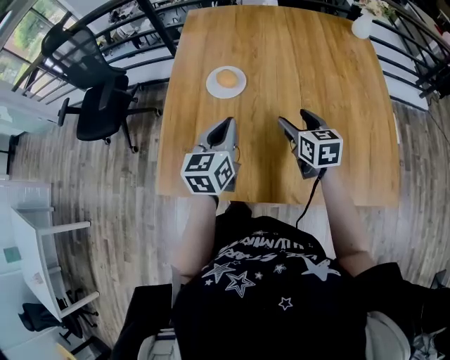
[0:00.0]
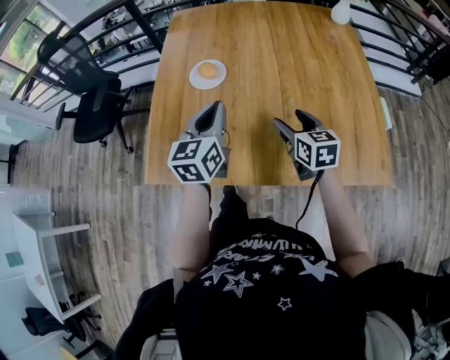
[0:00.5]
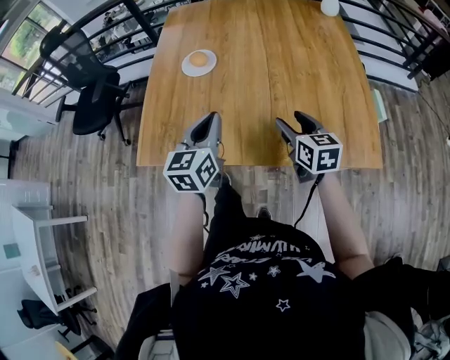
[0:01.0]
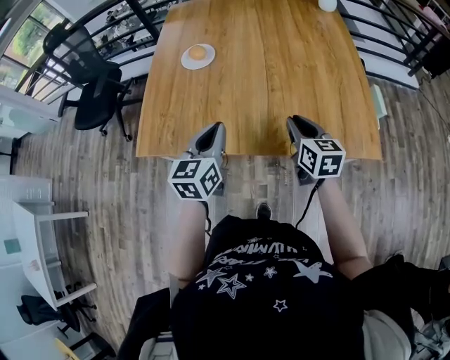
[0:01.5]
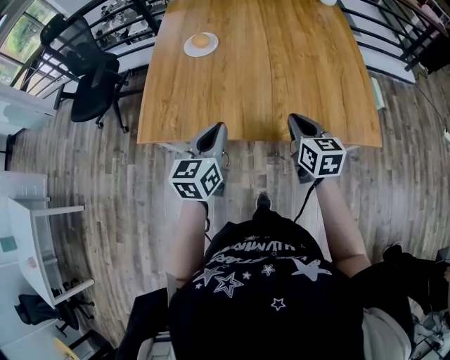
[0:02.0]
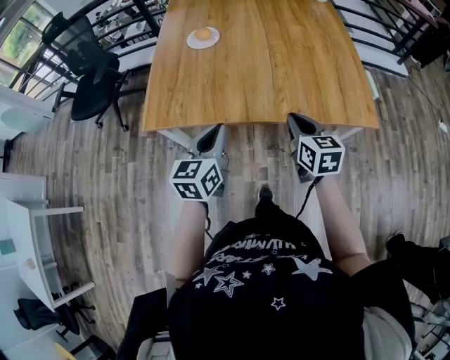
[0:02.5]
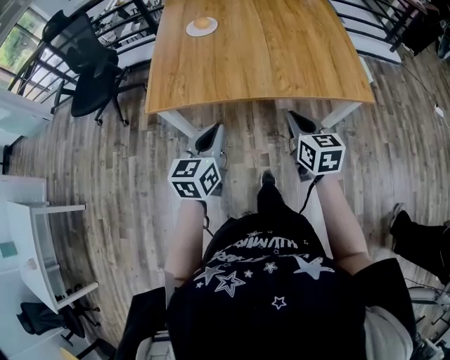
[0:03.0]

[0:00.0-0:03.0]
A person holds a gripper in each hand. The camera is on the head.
0:00.0 to 0:01.5: The two grippers go roughly 20 cm backward and to the right. The right gripper closes up.
0:01.5 to 0:03.0: Both grippers move backward, some 20 cm.

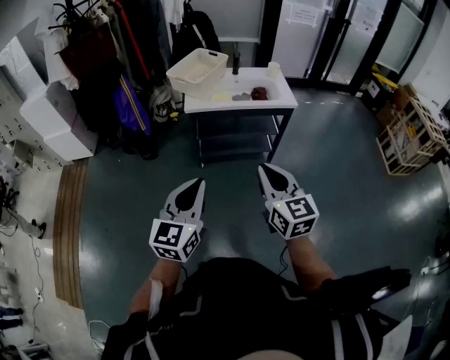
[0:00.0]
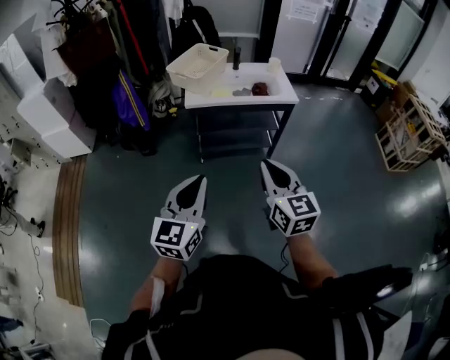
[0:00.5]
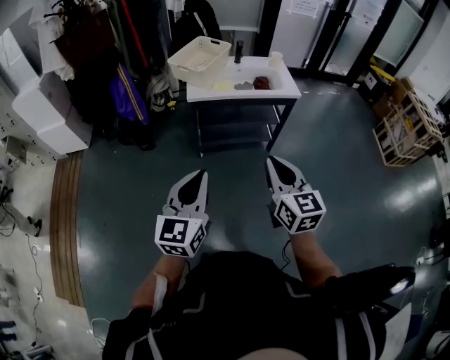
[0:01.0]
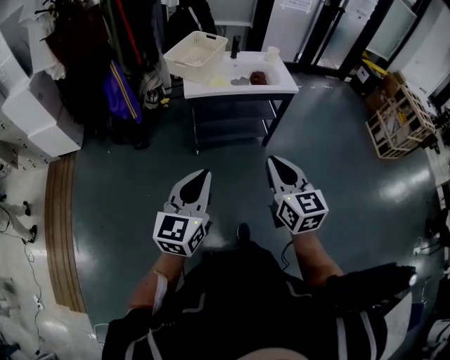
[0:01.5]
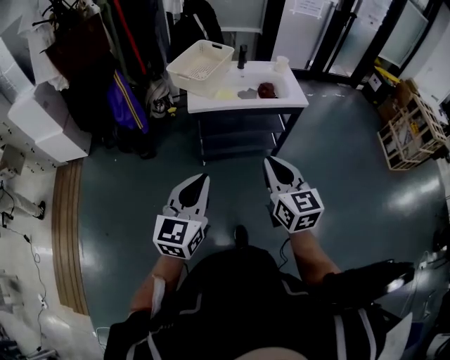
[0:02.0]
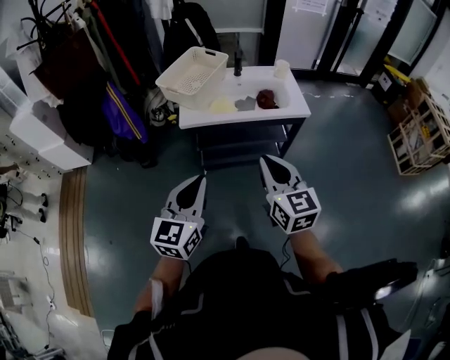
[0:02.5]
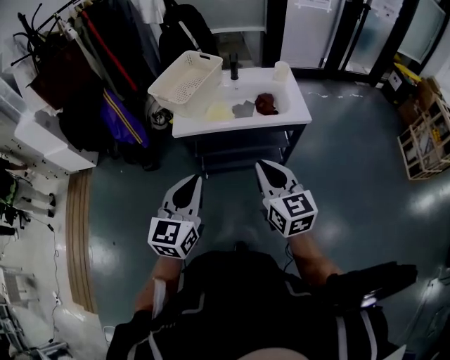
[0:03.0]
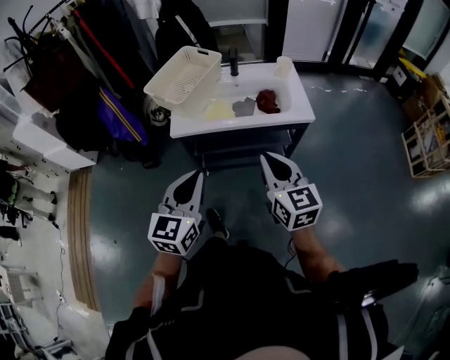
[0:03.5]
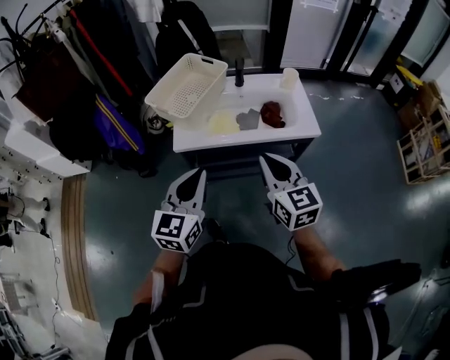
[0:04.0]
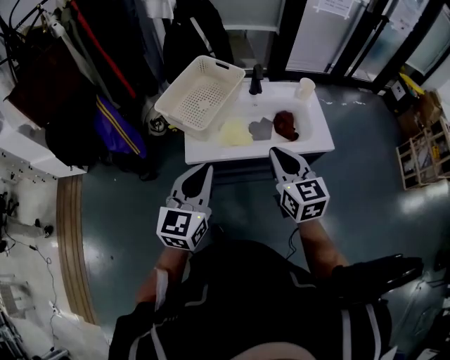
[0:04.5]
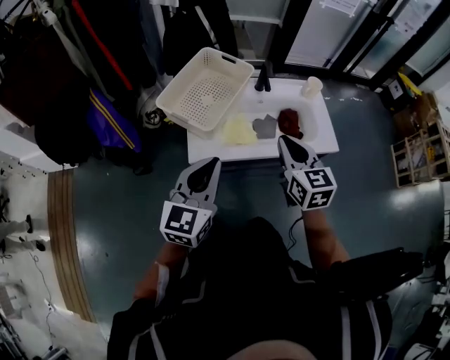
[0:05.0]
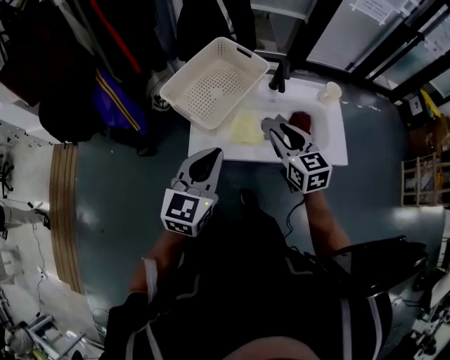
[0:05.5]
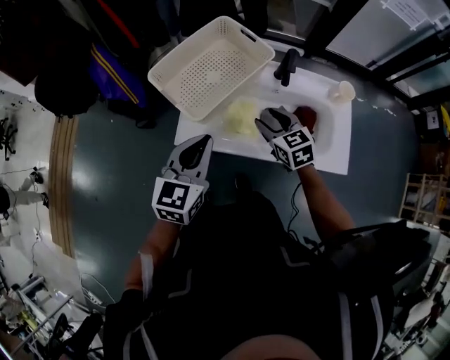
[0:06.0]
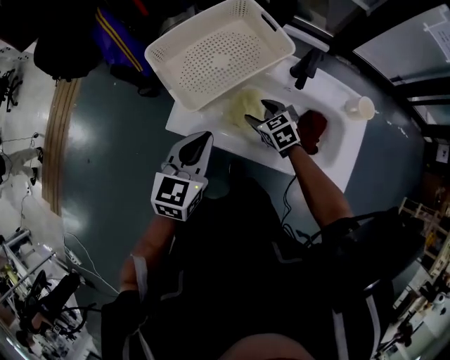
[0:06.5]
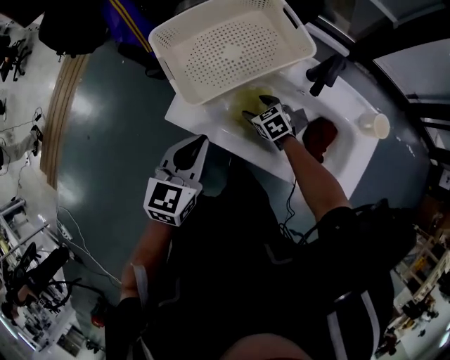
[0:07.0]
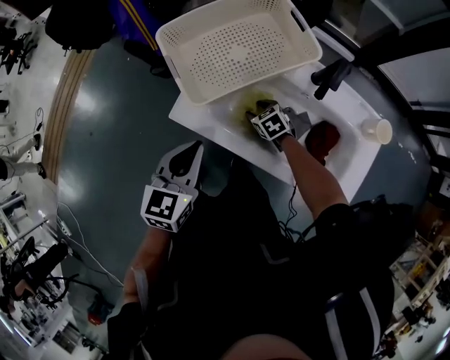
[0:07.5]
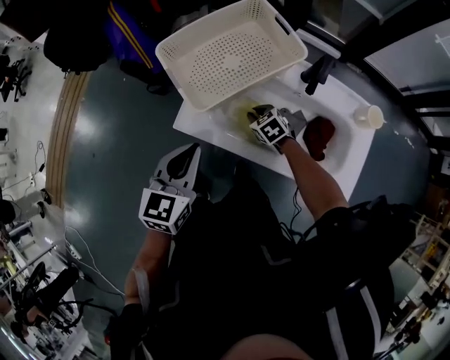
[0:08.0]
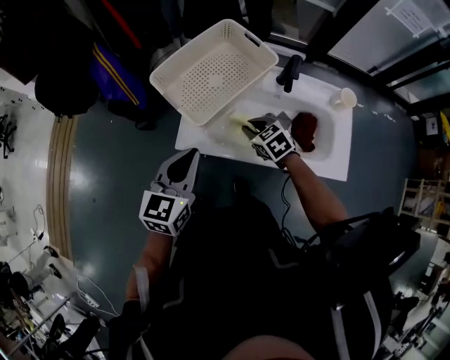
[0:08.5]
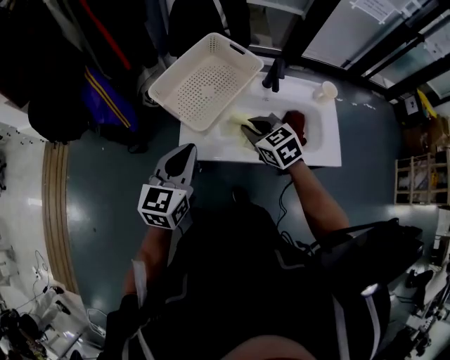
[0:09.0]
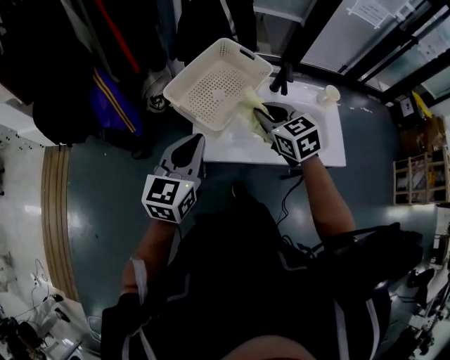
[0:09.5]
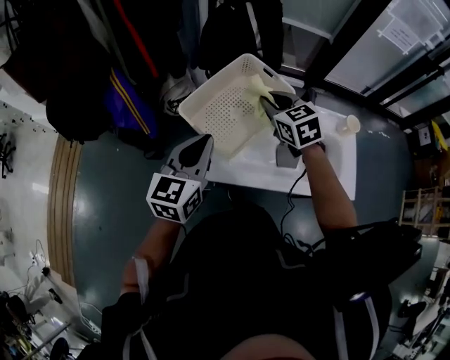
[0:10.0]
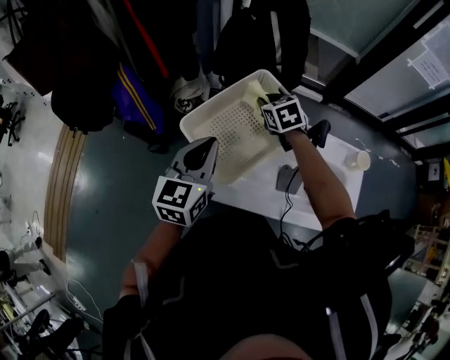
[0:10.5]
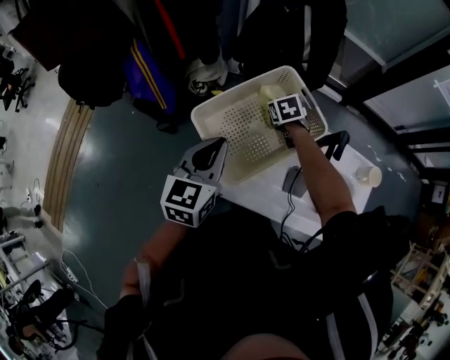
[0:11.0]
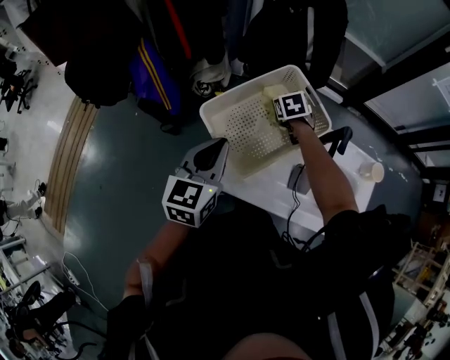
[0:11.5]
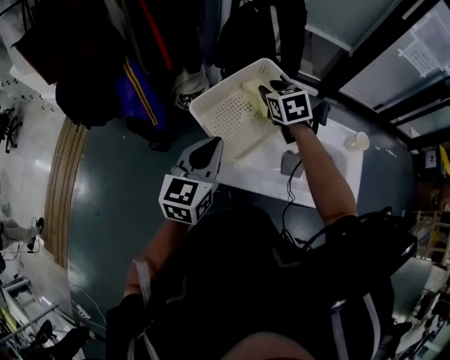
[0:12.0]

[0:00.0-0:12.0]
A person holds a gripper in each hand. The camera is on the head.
0:00.0 to 0:02.0: The right gripper heads forward, covering approximately 10 cm; the left gripper travels forward and to the left by about 10 cm.
0:02.0 to 0:04.0: The grippers both shift forward by roughly 30 cm.
0:04.0 to 0:06.0: The left gripper goes approximately 25 cm forward, while the right gripper moves forward and downward, some 35 cm, rotates approximately 30 degrees, and opens.
0:06.0 to 0:08.0: The left gripper travels downward by some 5 cm, while the right gripper shifts some 20 cm downward, changes its angle by roughly 30 degrees, and closes up.
0:08.0 to 0:10.0: The left gripper shifts by roughly 15 cm. Meanwhile the right gripper heads upward, covering about 30 cm, and changes its angle by approximately 30 degrees.
0:10.0 to 0:12.0: The right gripper moves forward, some 10 cm, and travels downward and back again, about 20 cm each way, while the left gripper goes forward and returns, approximately 10 cm each way.

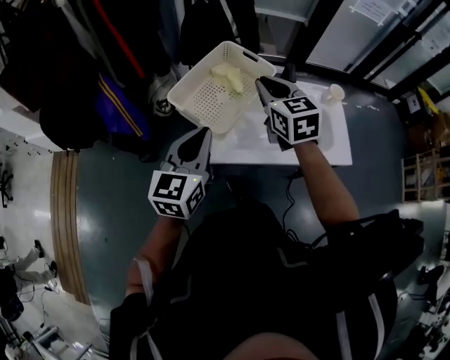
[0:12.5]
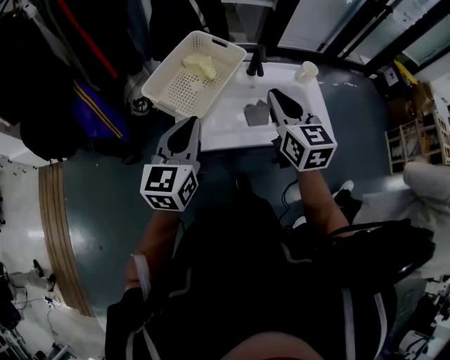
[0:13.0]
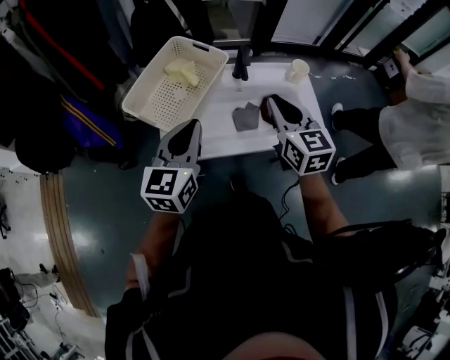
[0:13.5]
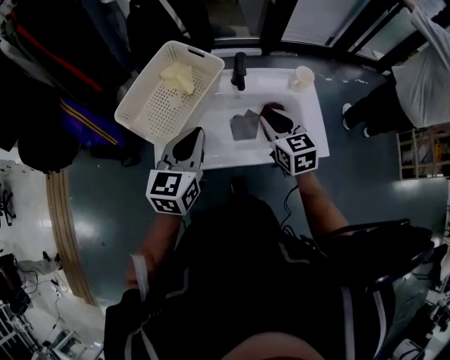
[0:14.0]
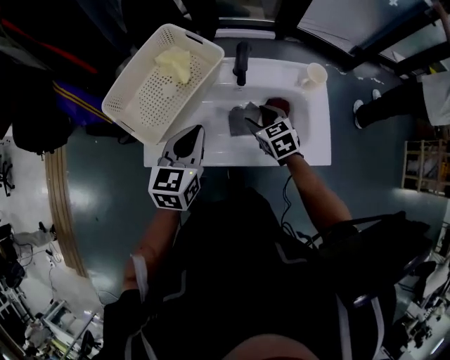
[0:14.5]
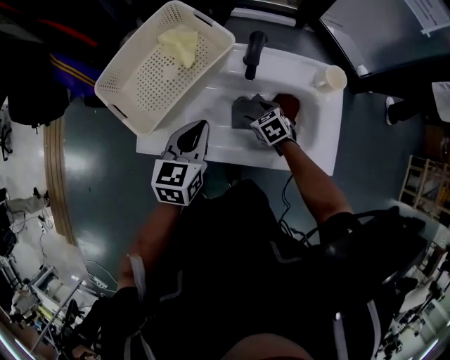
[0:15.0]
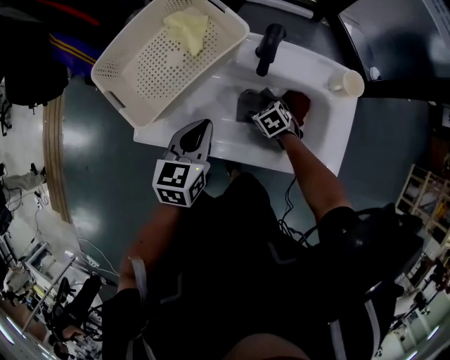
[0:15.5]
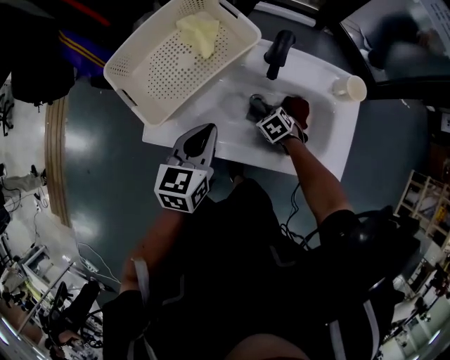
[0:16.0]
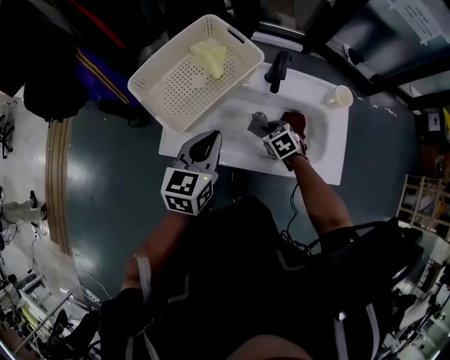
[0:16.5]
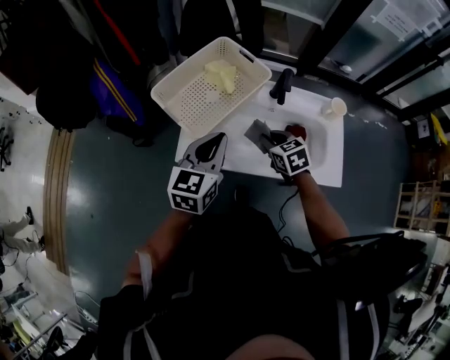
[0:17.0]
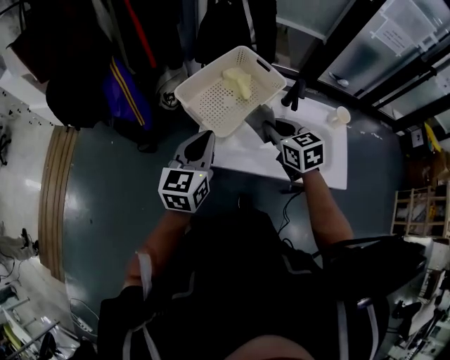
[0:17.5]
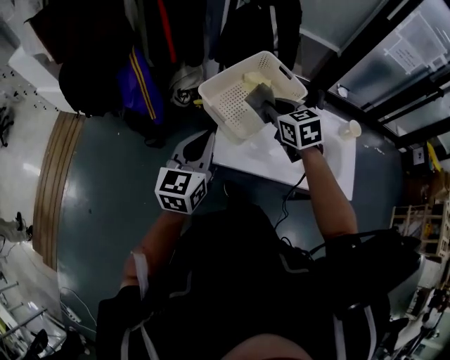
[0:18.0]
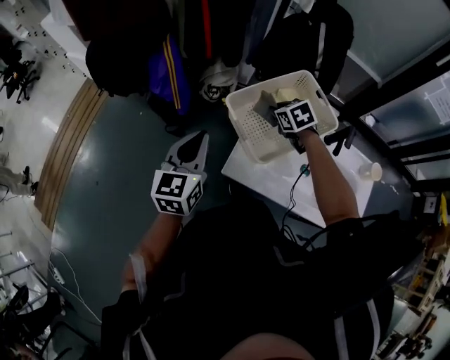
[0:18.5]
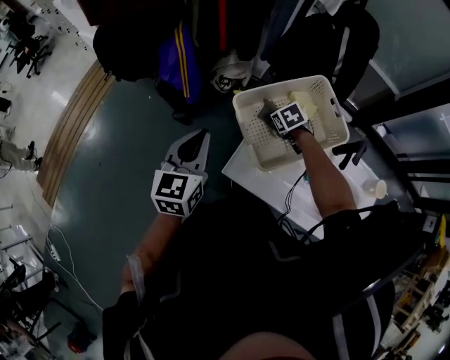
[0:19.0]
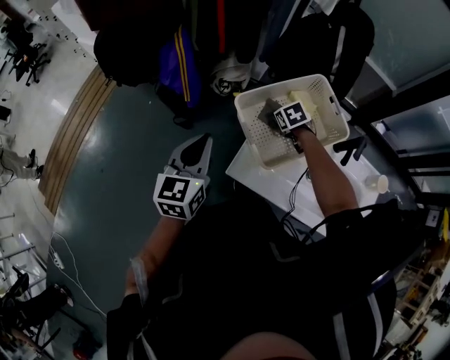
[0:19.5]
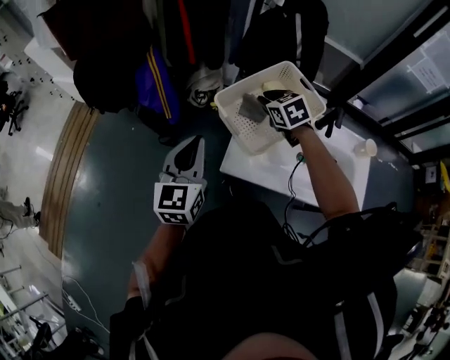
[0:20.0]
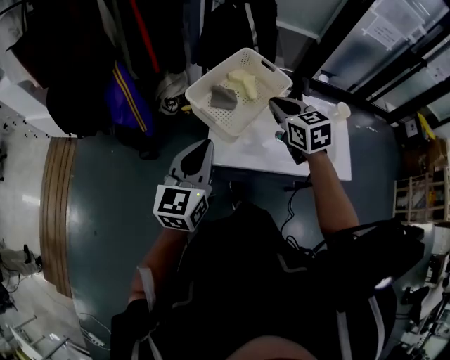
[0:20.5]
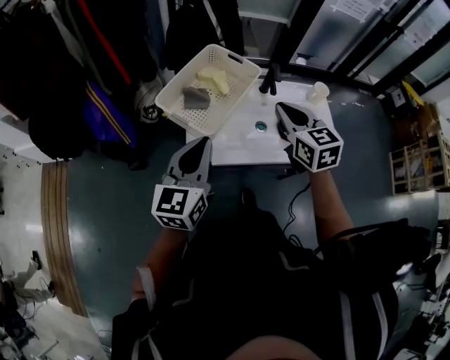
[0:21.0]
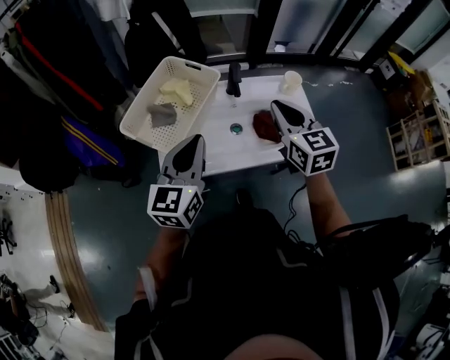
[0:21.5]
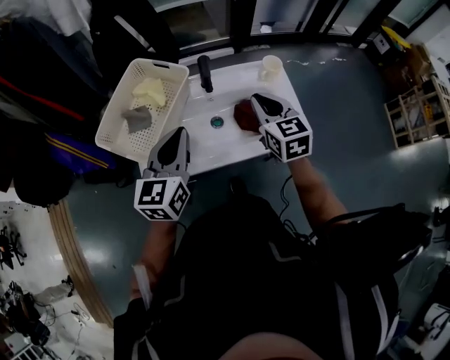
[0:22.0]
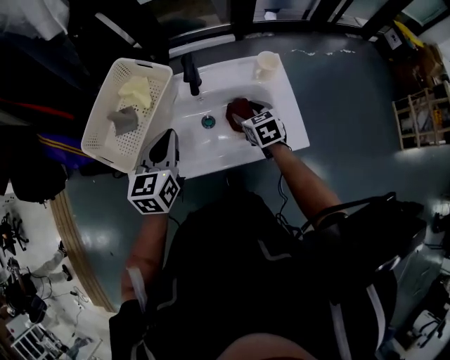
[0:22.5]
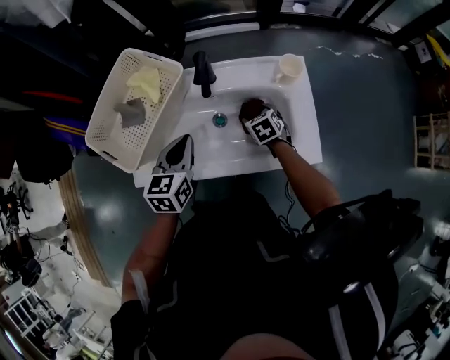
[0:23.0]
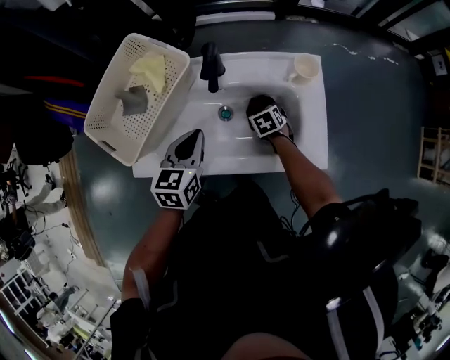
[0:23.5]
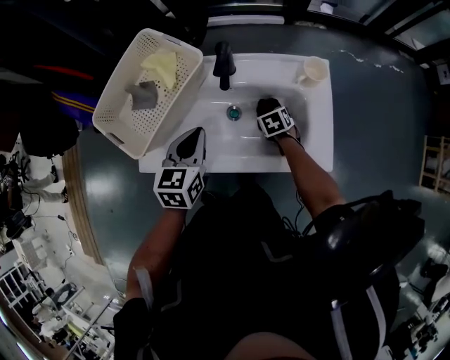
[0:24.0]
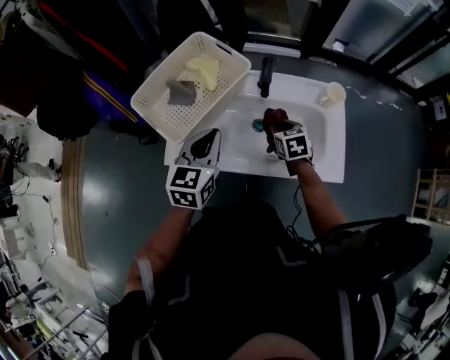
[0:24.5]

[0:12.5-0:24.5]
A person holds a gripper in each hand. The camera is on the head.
0:12.5 to 0:14.5: The right gripper moves downward and to the right, some 35 cm, changes its angle by roughly 20 degrees, and opens; the left gripper moves to the right, downward and forward, some 25 cm.
0:14.5 to 0:16.5: The left gripper goes downward and returns, some 10 cm each way; the right gripper moves downward, approximately 10 cm, and closes.
0:16.5 to 0:18.5: The left gripper goes approximately 25 cm to the left, and rotates approximately 20 degrees, while the right gripper travels to the left, forward and upward by about 35 cm.
0:18.5 to 0:20.5: The right gripper changes place by roughly 25 cm, swivels roughly 30 degrees, and opens, then closes once more. Meanwhile the left gripper changes place by roughly 10 cm, and turns by some 20 degrees.
0:20.5 to 0:22.5: The left gripper shifts some 30 cm to the right and forward. The right gripper goes about 40 cm to the right and downward, turns by about 20 degrees, and opens.
0:22.5 to 0:24.5: The right gripper shifts roughly 10 cm to the left, travels downward and back again, some 15 cm each way, and closes its fingers.
